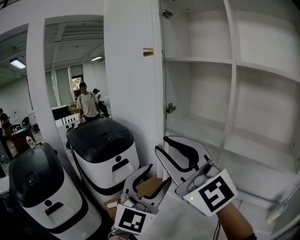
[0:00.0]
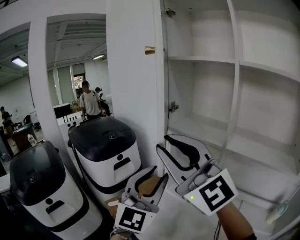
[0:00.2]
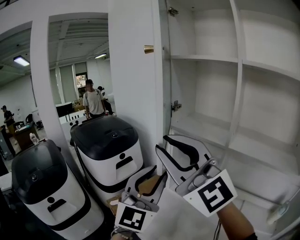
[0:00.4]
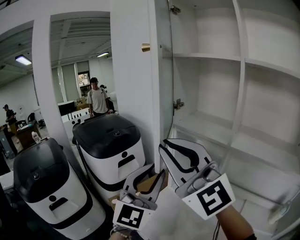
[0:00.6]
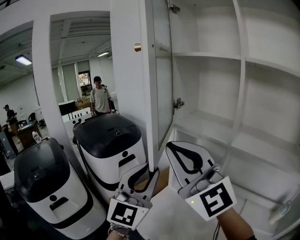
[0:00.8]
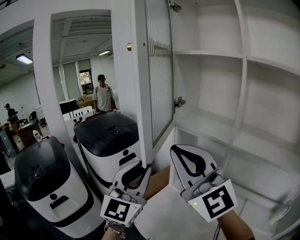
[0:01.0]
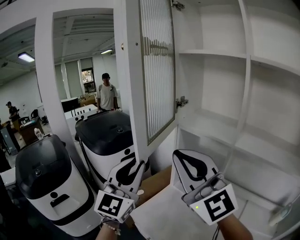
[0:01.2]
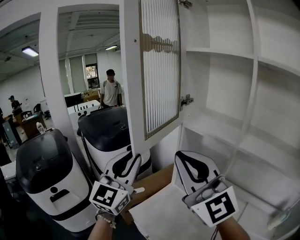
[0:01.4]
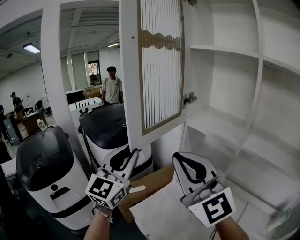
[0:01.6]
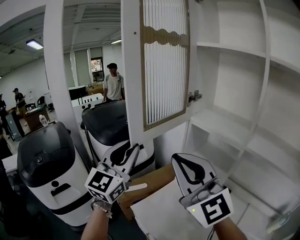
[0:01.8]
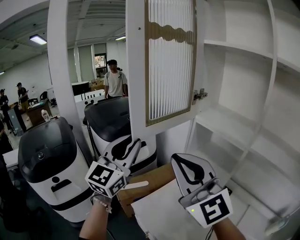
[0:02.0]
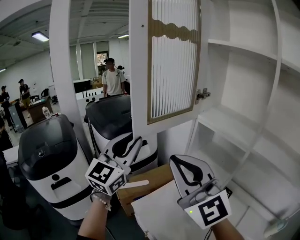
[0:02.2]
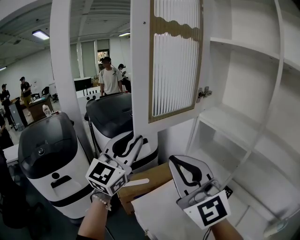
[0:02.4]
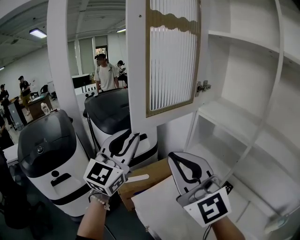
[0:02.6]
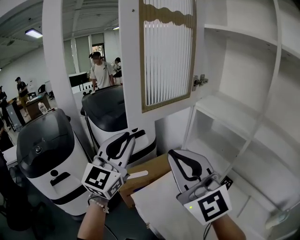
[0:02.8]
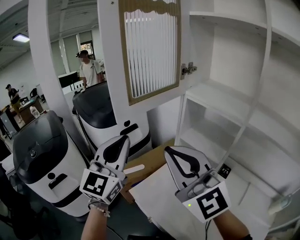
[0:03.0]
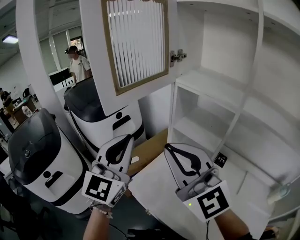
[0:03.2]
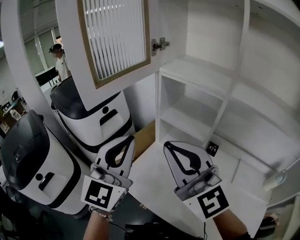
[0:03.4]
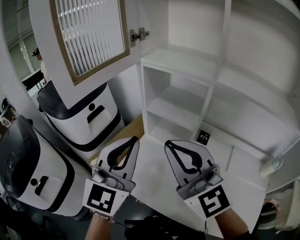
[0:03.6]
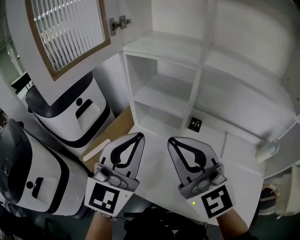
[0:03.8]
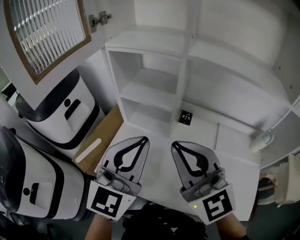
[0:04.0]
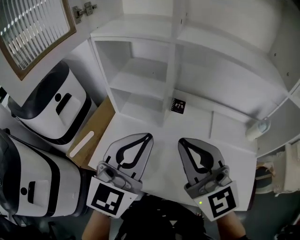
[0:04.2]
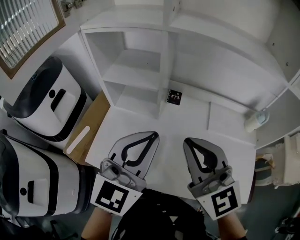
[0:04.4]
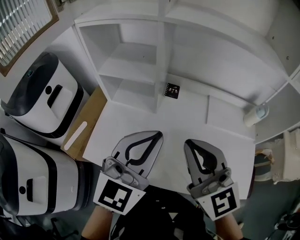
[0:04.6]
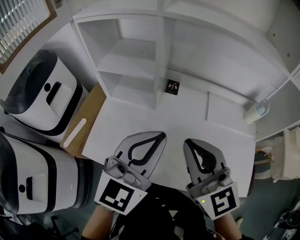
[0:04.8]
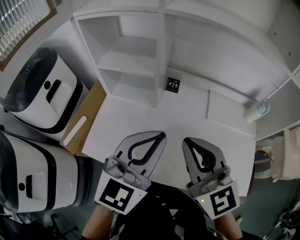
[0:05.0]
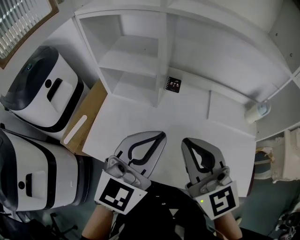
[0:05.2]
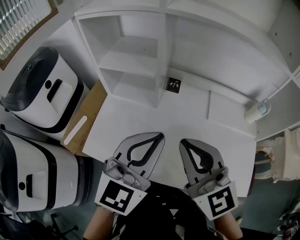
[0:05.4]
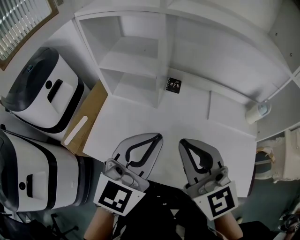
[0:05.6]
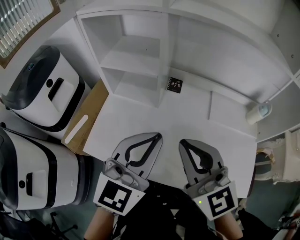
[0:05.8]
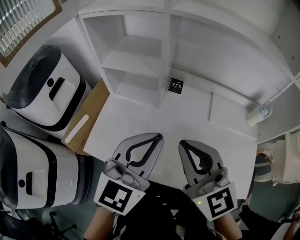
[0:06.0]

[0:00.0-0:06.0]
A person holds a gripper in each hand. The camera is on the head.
0:00.0 to 0:01.6: The left gripper heads to the left and forward, covering roughly 15 cm, and closes; the right gripper goes approximately 5 cm downward, and closes up.
0:01.6 to 0:03.0: The right gripper goes some 5 cm downward.
0:03.0 to 0:04.4: The left gripper moves approximately 35 cm, and turns by roughly 50 degrees; the right gripper shifts by approximately 30 cm, and changes its angle by roughly 40 degrees.
0:04.4 to 0:06.0: There are only small adjustments of the grippers.

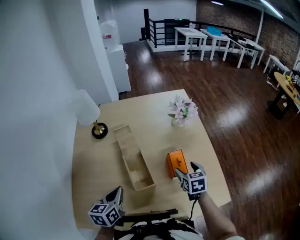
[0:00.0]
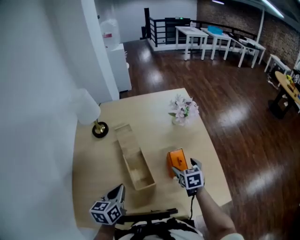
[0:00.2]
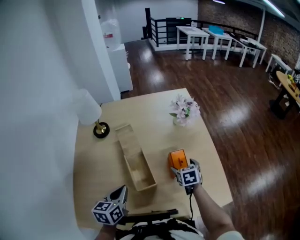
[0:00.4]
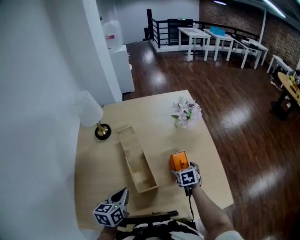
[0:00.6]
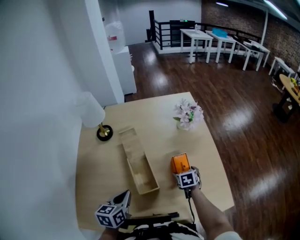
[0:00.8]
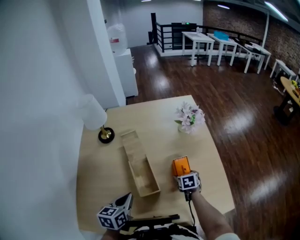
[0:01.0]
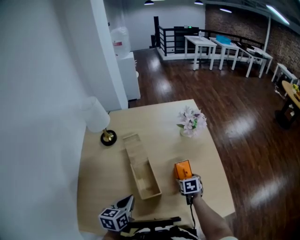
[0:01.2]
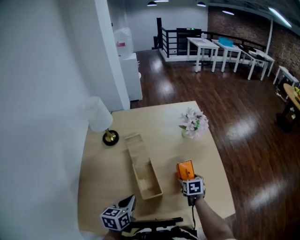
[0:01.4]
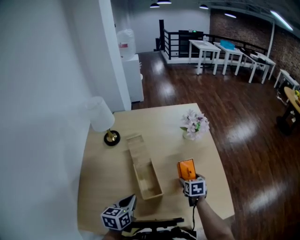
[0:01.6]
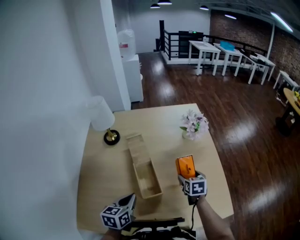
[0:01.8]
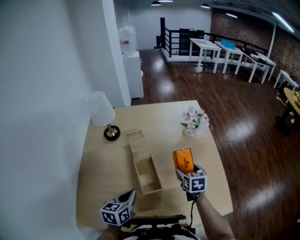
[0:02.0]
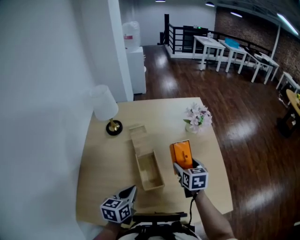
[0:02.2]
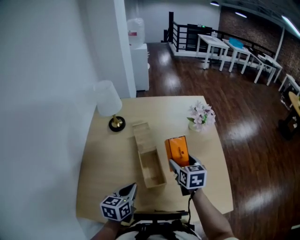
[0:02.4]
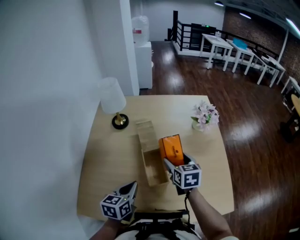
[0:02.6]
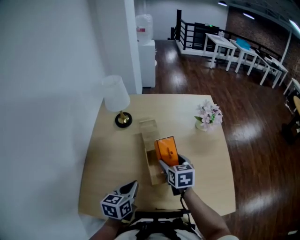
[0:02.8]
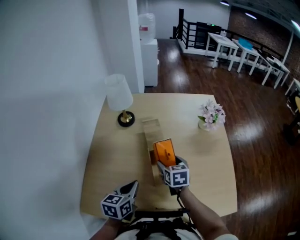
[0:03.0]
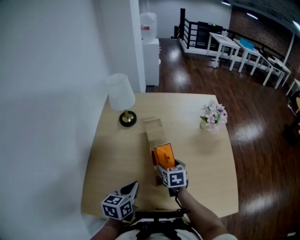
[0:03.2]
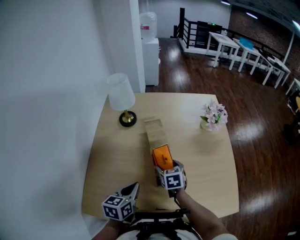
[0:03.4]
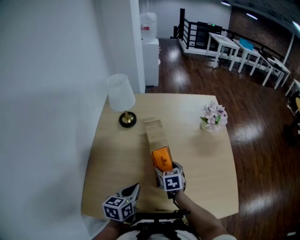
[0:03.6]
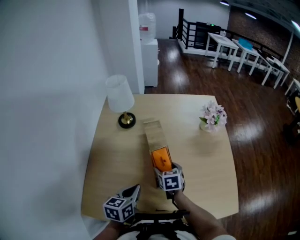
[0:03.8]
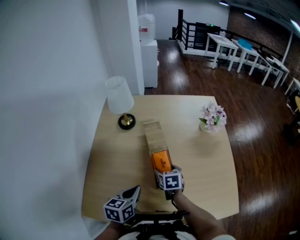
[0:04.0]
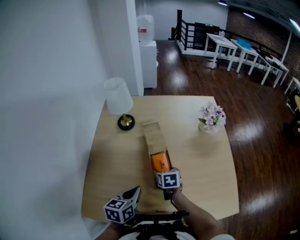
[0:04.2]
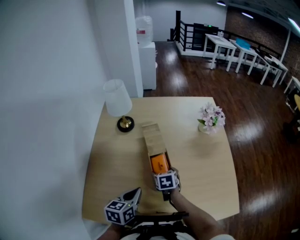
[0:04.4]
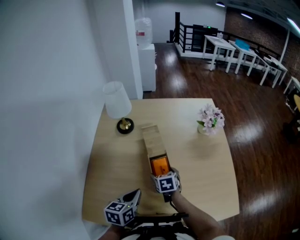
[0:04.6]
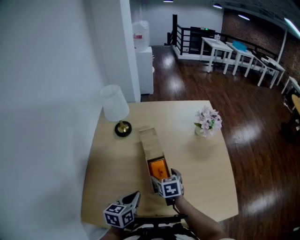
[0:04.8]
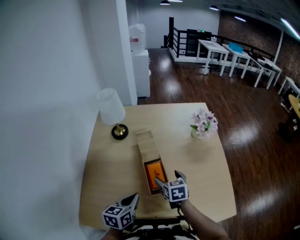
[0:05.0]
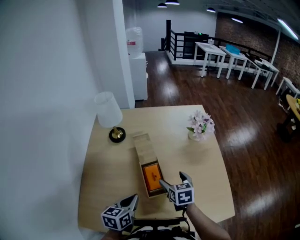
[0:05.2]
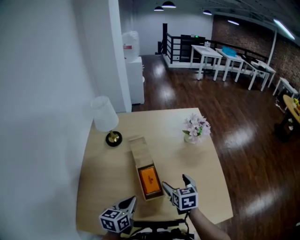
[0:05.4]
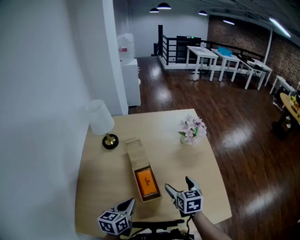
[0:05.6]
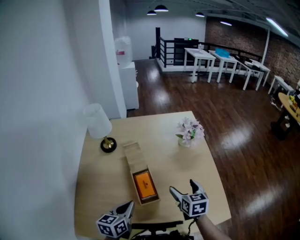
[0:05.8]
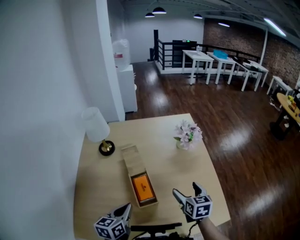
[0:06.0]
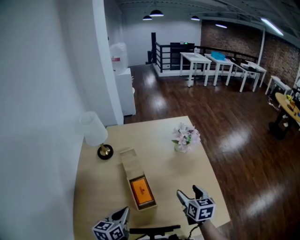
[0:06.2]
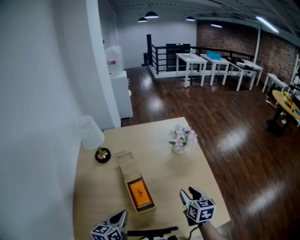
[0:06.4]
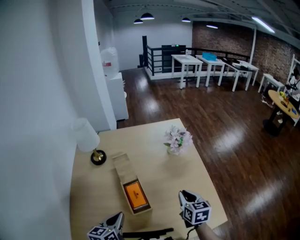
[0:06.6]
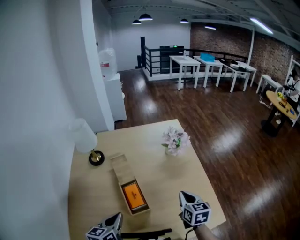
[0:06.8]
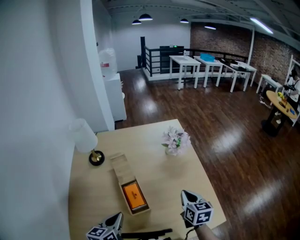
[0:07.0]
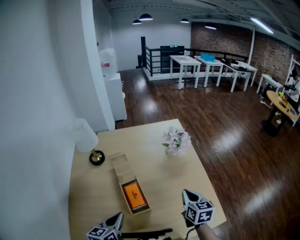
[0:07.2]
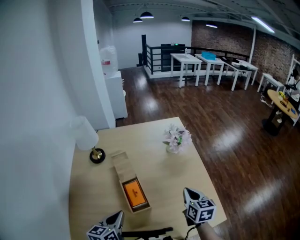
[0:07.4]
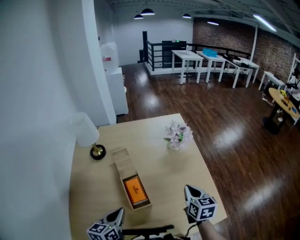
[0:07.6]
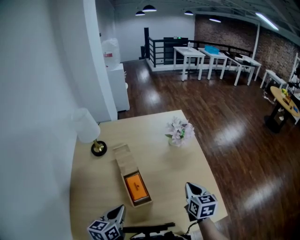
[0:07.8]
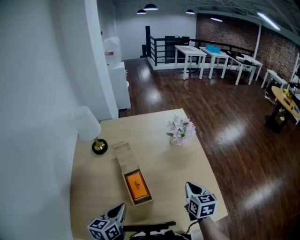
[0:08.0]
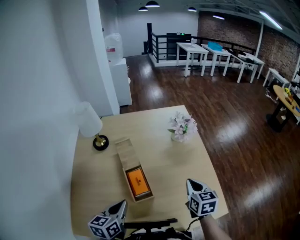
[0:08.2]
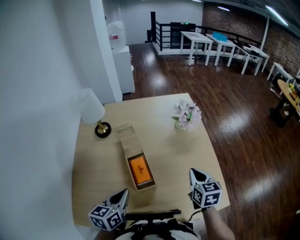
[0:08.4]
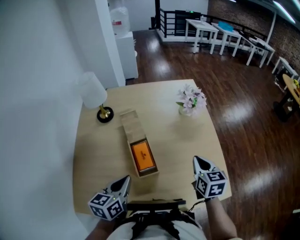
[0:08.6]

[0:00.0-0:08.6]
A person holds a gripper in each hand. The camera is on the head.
0:00.0 to 0:01.4: The right gripper shifts approximately 10 cm downward.
0:01.4 to 0:02.8: The right gripper goes some 25 cm to the left and upward, and turns by roughly 20 degrees.
0:02.8 to 0:04.4: The right gripper goes about 15 cm downward and to the left.
0:04.4 to 0:05.8: The left gripper shifts by roughly 5 cm; the right gripper moves to the right and upward, roughly 25 cm, and turns by about 20 degrees.
0:05.8 to 0:07.2: The right gripper is displaced to the right by about 5 cm, and closes its fingers.
0:07.2 to 0:08.6: The grippers make only small movements.

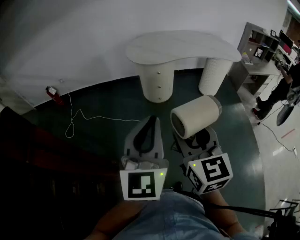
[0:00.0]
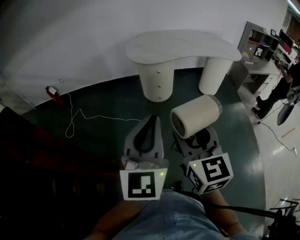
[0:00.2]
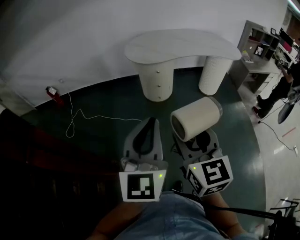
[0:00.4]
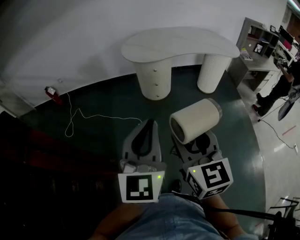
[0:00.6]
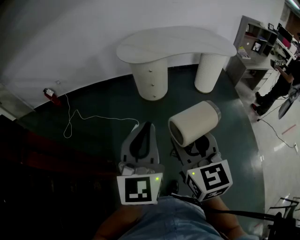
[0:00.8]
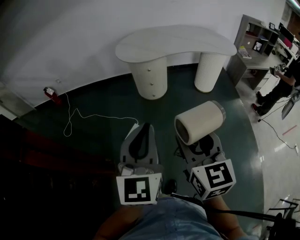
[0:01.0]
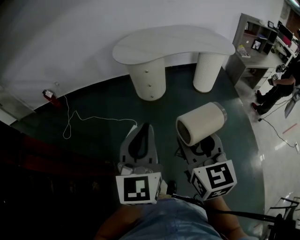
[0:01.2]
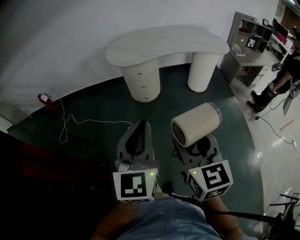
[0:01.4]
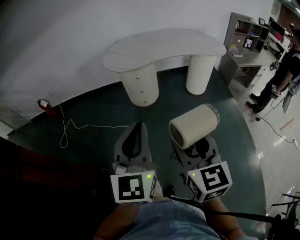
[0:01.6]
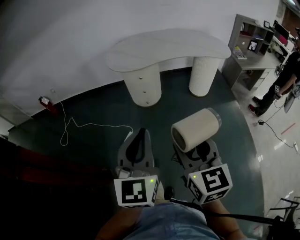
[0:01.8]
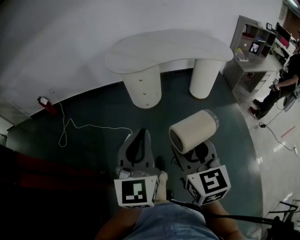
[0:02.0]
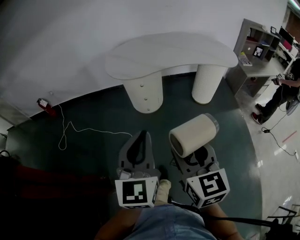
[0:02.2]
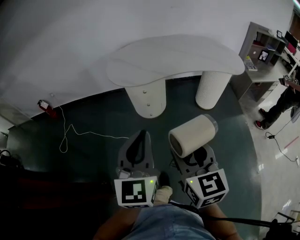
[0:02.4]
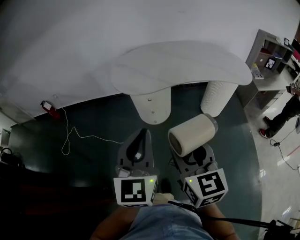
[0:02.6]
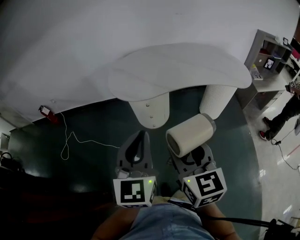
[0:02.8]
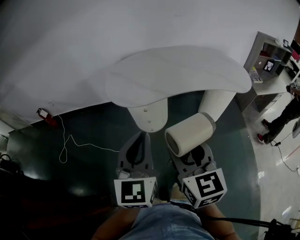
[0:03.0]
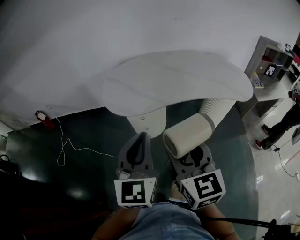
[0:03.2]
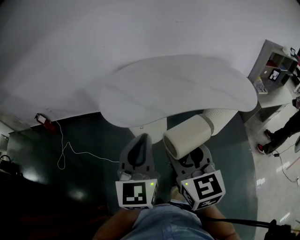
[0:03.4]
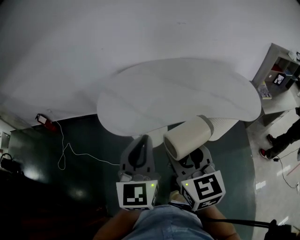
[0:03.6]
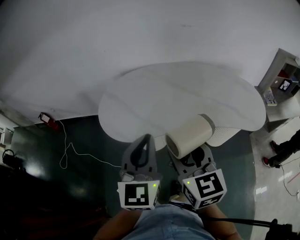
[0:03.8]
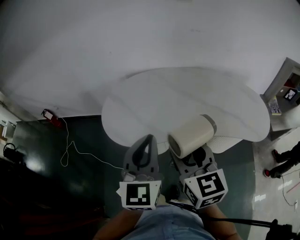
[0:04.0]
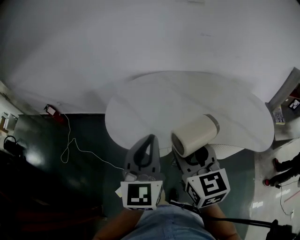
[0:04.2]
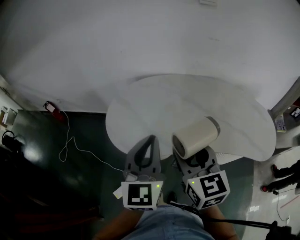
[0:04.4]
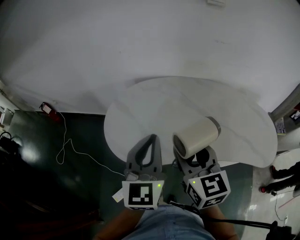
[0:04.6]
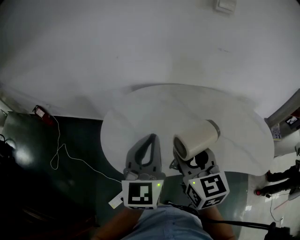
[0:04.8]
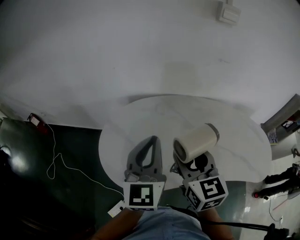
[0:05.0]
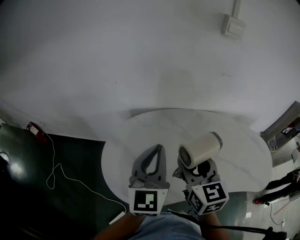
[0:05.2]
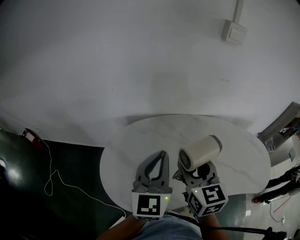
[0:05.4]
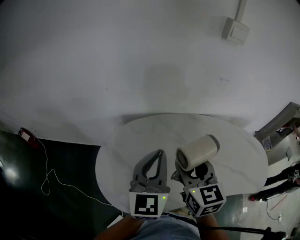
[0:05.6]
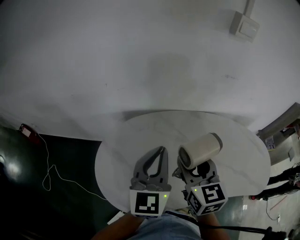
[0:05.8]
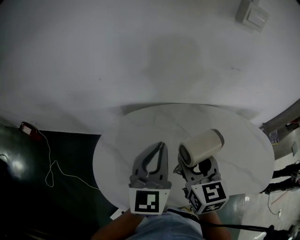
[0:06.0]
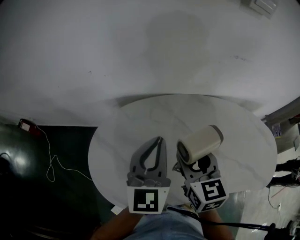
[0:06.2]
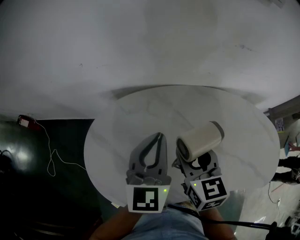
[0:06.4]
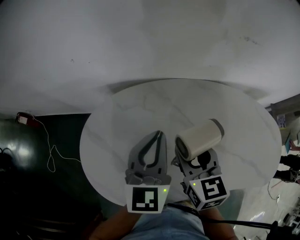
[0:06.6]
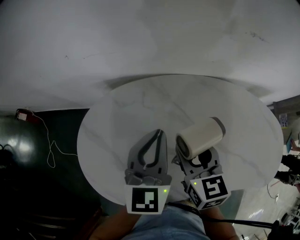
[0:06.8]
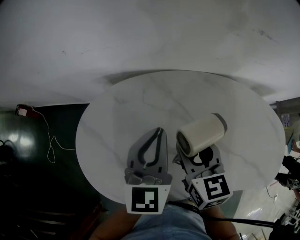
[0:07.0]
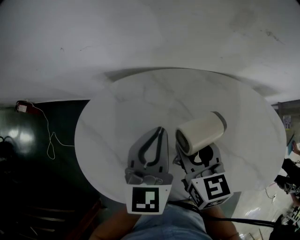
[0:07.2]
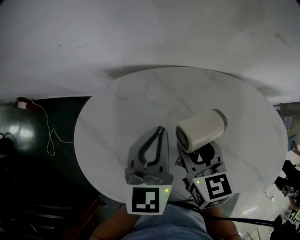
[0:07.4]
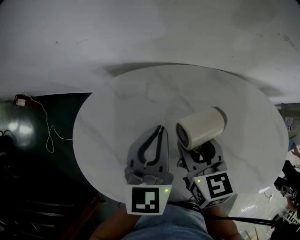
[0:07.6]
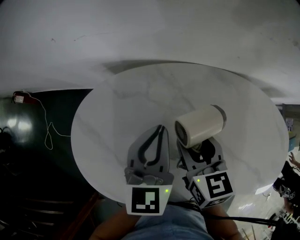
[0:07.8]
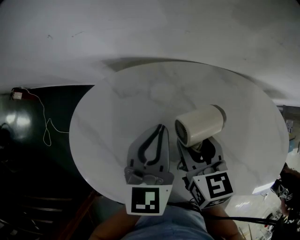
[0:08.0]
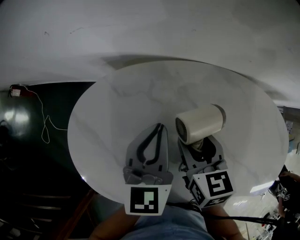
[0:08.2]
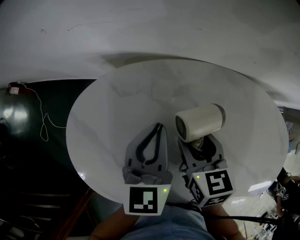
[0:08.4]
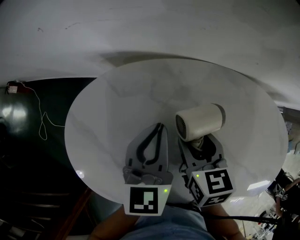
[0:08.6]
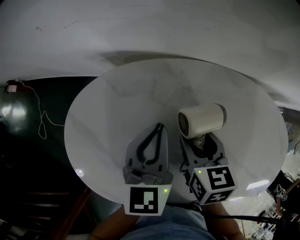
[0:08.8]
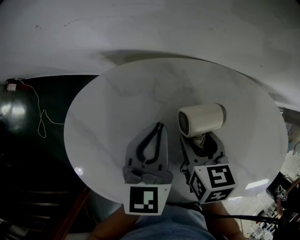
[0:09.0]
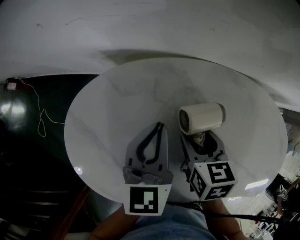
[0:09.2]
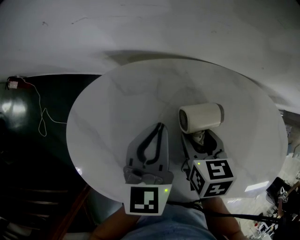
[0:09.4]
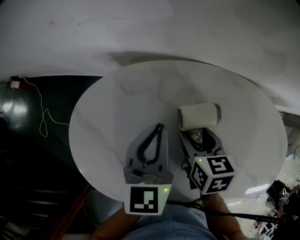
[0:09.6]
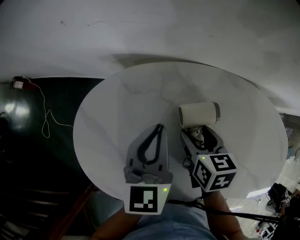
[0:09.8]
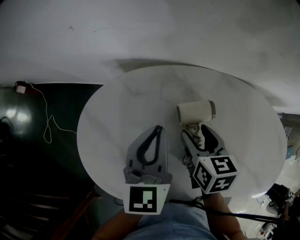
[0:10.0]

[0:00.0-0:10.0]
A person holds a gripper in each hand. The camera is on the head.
0:00.0 to 0:01.4: The two grippers go some 10 cm to the right.
0:01.4 to 0:02.8: The two grippers go some 30 cm forward.
0:02.8 to 0:04.2: Both grippers travel together forward and to the right, roughly 35 cm.
0:04.2 to 0:05.8: The two grippers go about 30 cm forward.
0:05.8 to 0:07.2: The left gripper is displaced downward, forward and to the right by approximately 15 cm. The right gripper moves downward and forward, roughly 15 cm.
0:07.2 to 0:08.6: Both grippers travel together downward, approximately 10 cm.
0:08.6 to 0:10.0: The left gripper moves about 5 cm.
